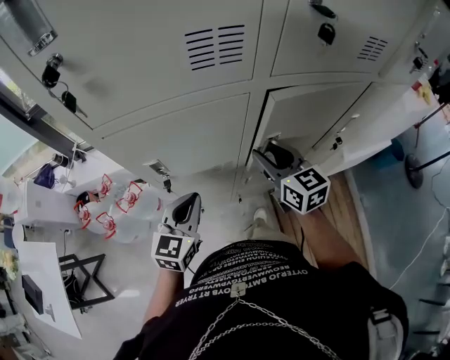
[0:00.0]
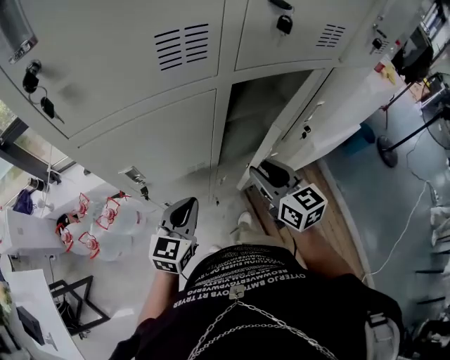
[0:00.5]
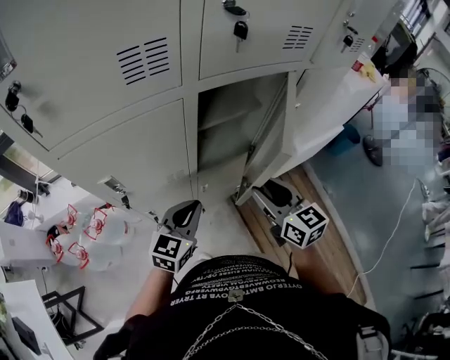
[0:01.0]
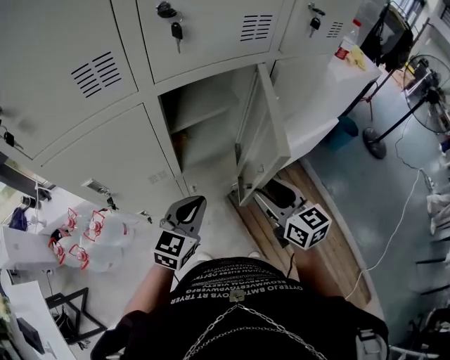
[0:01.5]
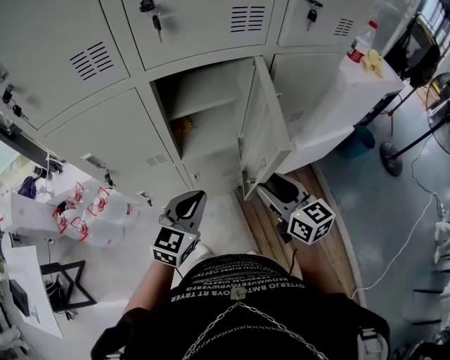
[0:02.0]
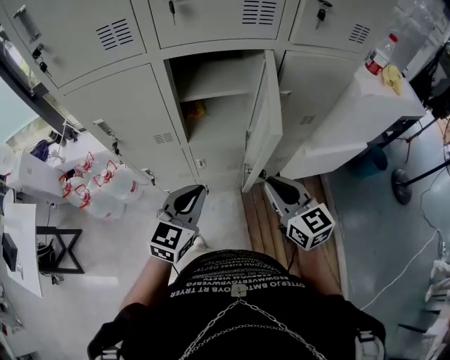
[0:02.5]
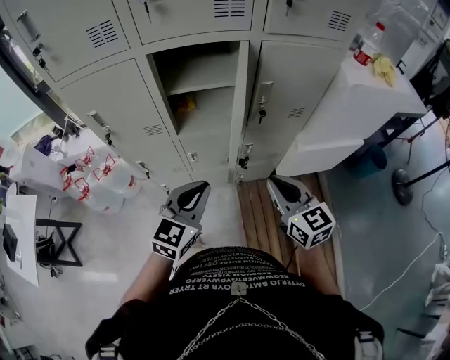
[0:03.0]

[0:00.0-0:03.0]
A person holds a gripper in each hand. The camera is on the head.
0:00.0 to 0:01.5: The left gripper heads to the right, covering about 20 cm, and turns by about 20 degrees. Meanwhile the right gripper shifts roughly 25 cm to the right and backward.
0:01.5 to 0:03.0: Both grippers move to the right and backward, roughly 15 cm. The right gripper swivels some 20 degrees, and closes up.

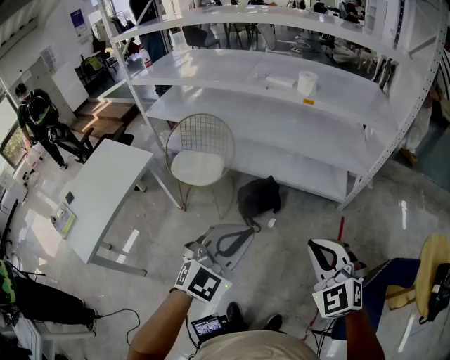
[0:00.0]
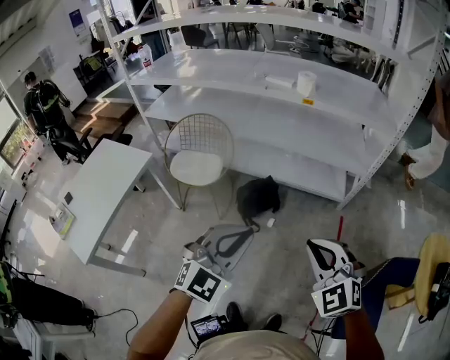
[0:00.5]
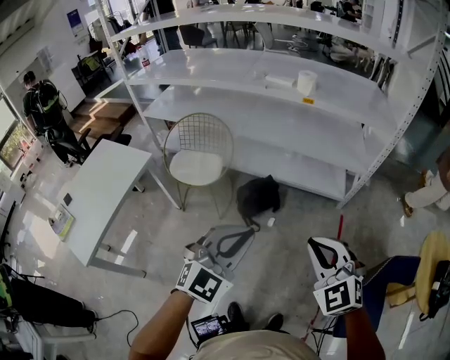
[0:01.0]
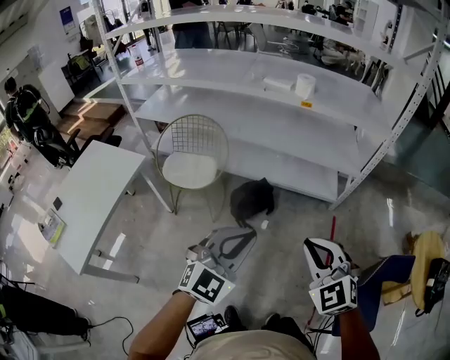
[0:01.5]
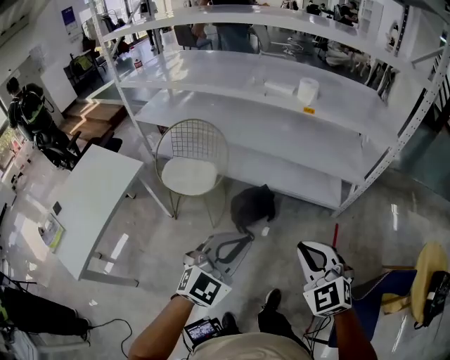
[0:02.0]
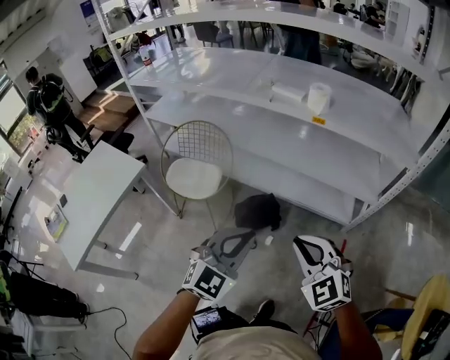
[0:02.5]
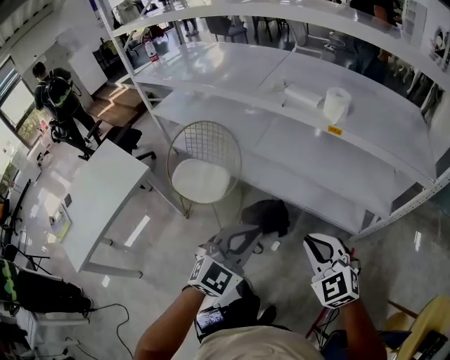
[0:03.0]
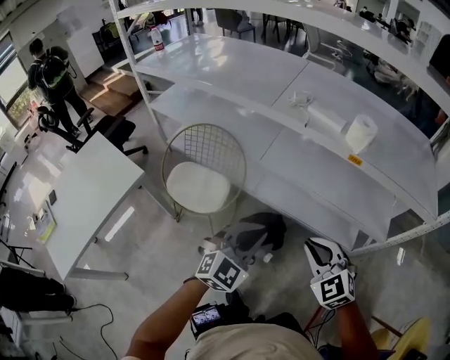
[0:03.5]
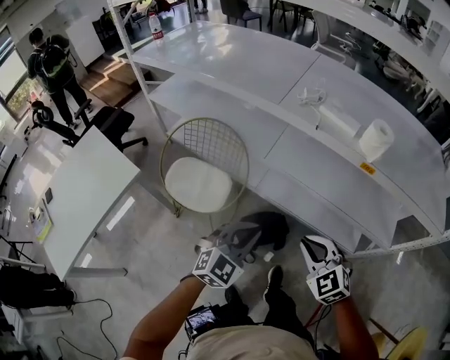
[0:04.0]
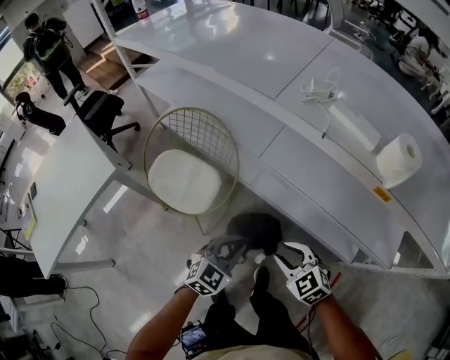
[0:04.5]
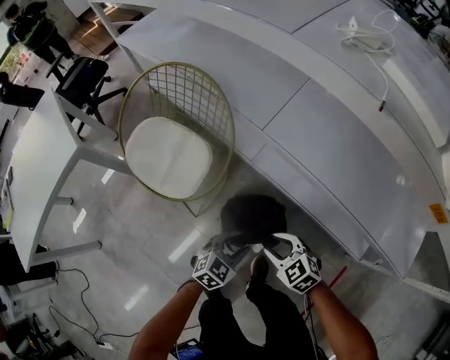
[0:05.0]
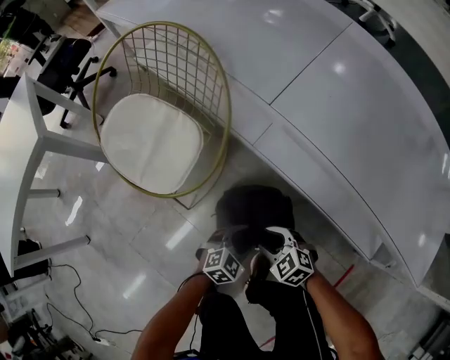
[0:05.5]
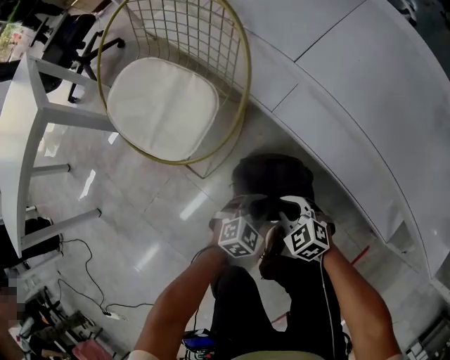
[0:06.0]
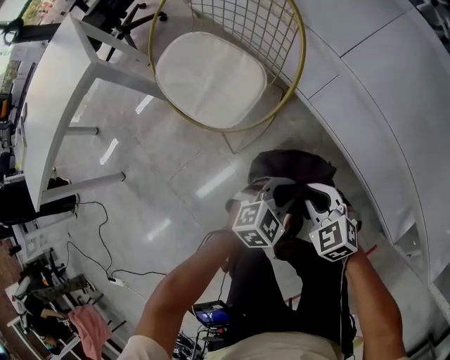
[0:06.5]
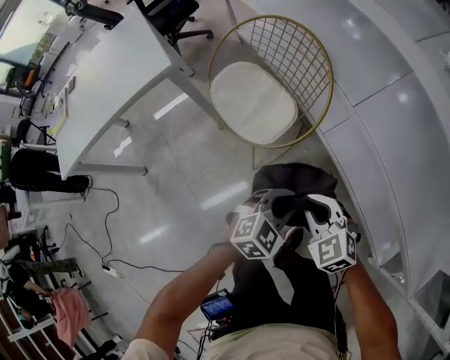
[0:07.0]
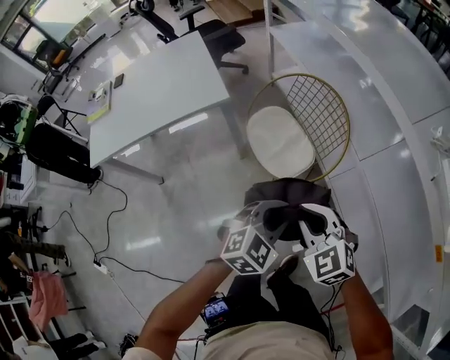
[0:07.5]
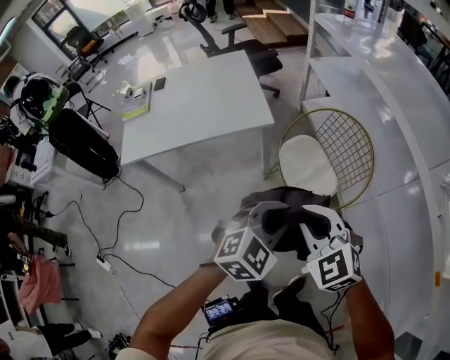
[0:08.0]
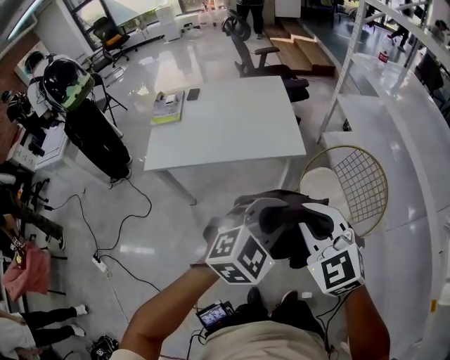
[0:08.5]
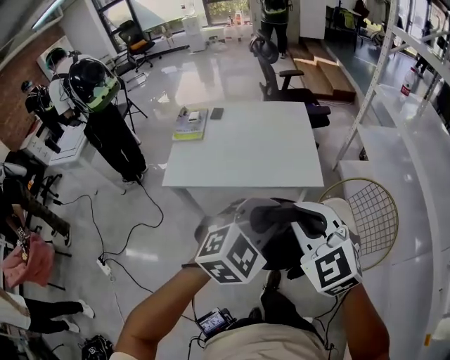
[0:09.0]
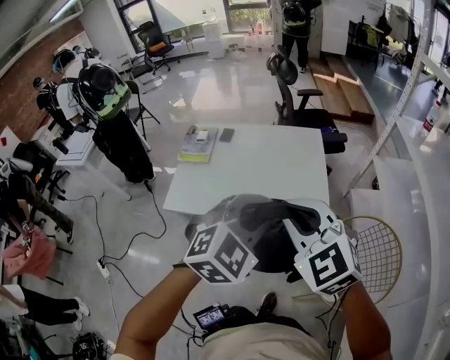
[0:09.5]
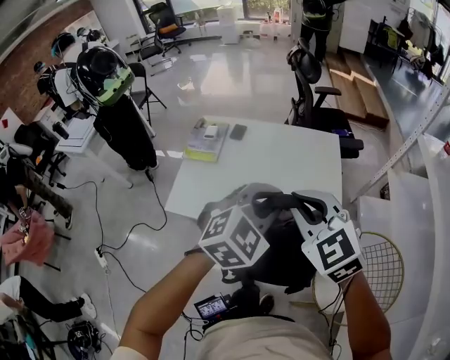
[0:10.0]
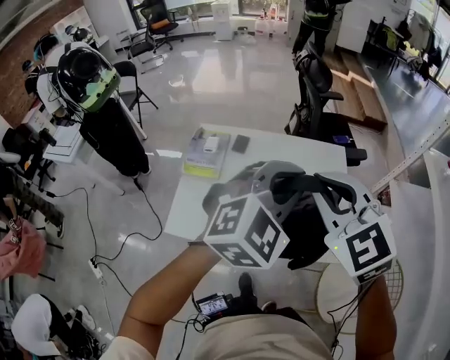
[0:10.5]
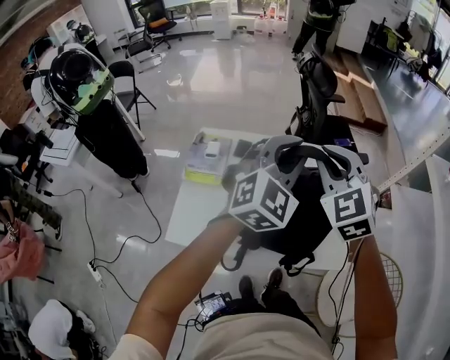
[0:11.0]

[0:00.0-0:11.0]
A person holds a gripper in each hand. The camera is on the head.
0:00.0 to 0:02.0: The two grippers go approximately 5 cm forward.
0:02.0 to 0:03.5: The two grippers go some 30 cm forward.
0:03.5 to 0:05.5: The grippers both shift downward by approximately 60 cm. The right gripper rotates approximately 40 degrees, and opens, while the left gripper rotates approximately 40 degrees, and opens up.
0:05.5 to 0:07.5: Both grippers move upward and to the left, roughly 50 cm. The right gripper changes its angle by some 30 degrees, and closes; the left gripper turns by roughly 30 degrees, and closes.
0:07.5 to 0:09.0: Both grippers move to the left and upward, about 40 cm. The right gripper rotates some 20 degrees, while the left gripper swivels approximately 20 degrees.
0:09.0 to 0:11.0: The two grippers travel together, forward, approximately 50 cm. The left gripper swivels roughly 20 degrees.

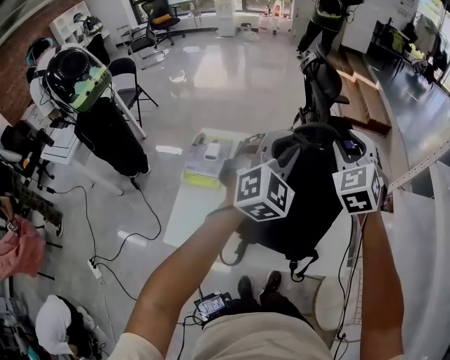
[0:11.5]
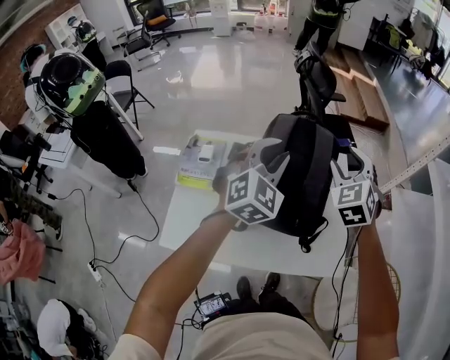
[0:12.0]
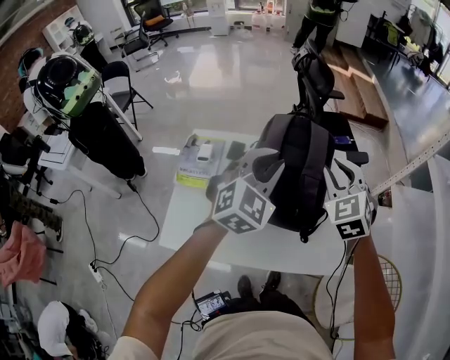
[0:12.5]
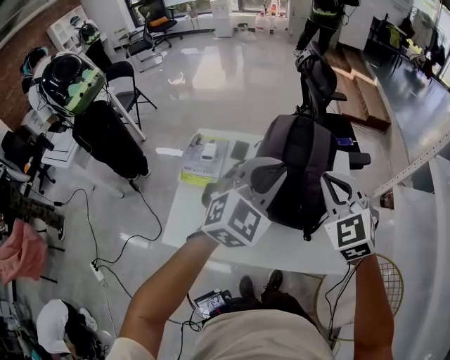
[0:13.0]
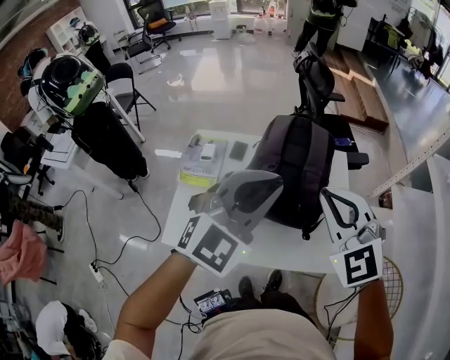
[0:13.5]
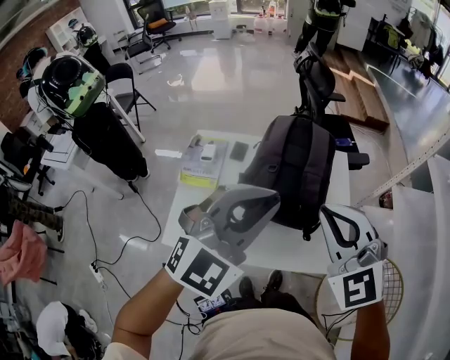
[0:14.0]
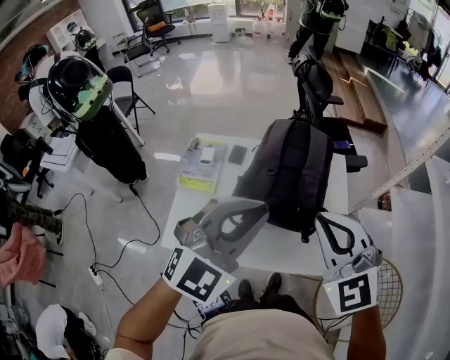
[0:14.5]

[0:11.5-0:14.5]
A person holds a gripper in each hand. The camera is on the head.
0:11.5 to 0:13.0: The right gripper is displaced backward by about 10 cm, and closes its fingers, while the left gripper heads backward, covering some 5 cm.
0:13.0 to 0:14.5: Both grippers travel together backward and upward, approximately 10 cm.

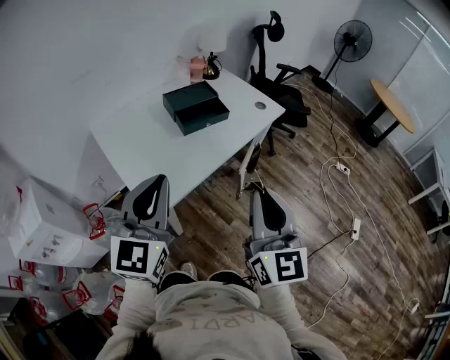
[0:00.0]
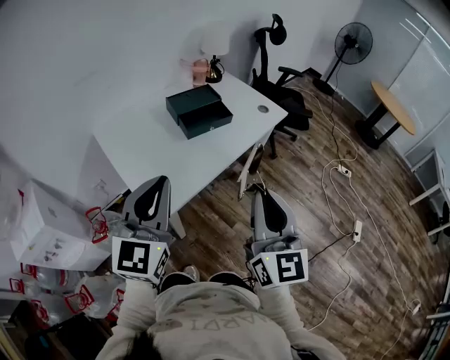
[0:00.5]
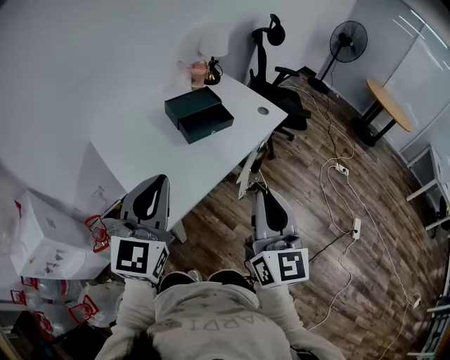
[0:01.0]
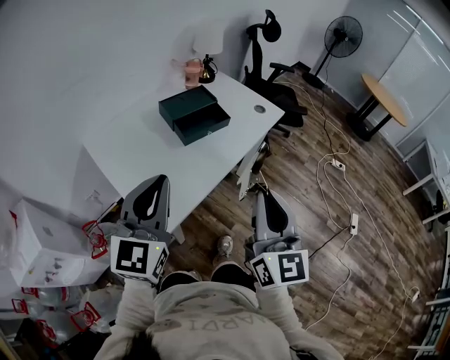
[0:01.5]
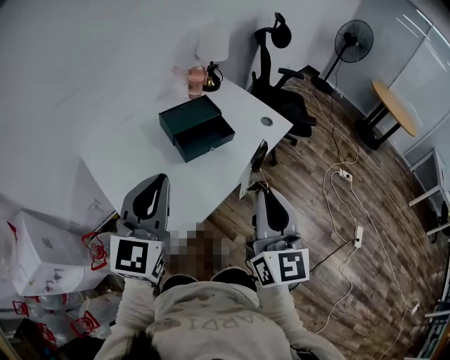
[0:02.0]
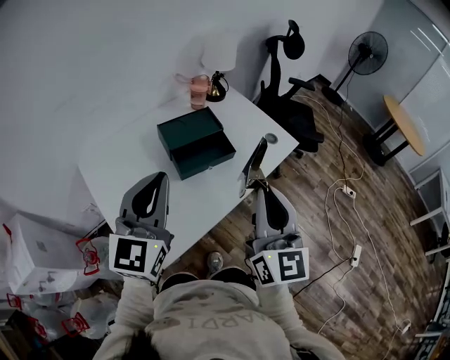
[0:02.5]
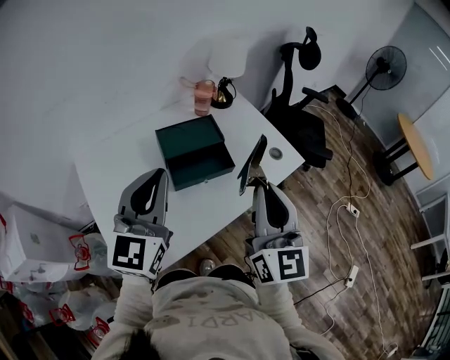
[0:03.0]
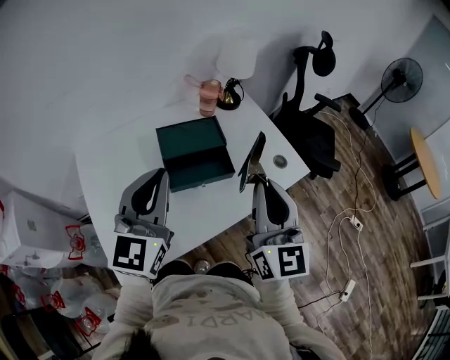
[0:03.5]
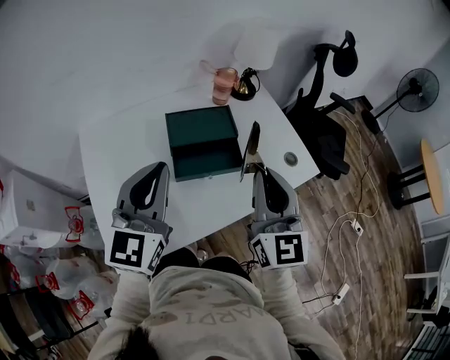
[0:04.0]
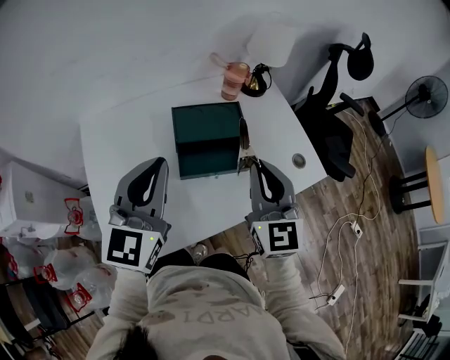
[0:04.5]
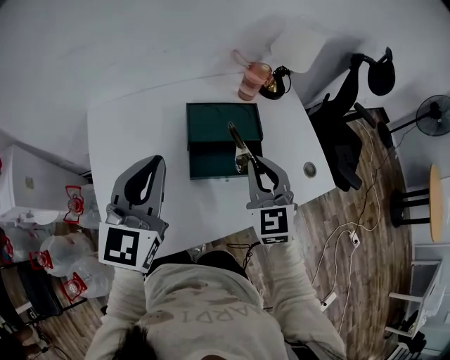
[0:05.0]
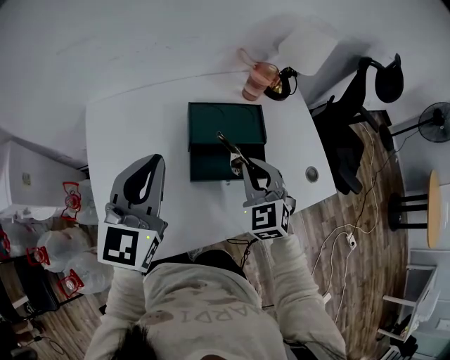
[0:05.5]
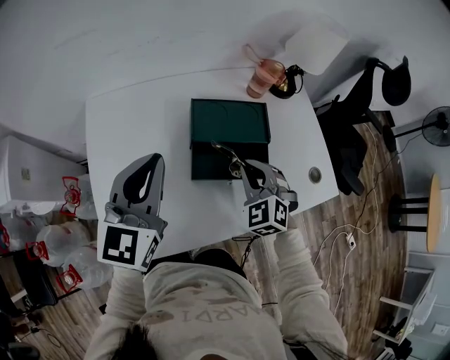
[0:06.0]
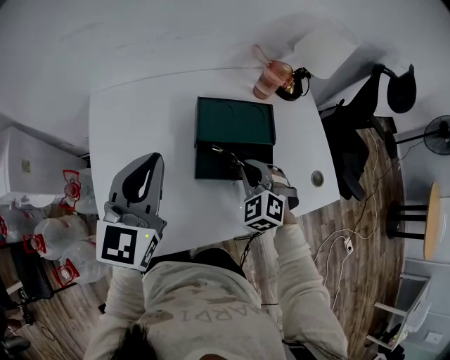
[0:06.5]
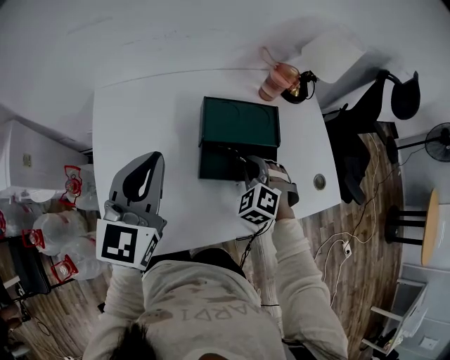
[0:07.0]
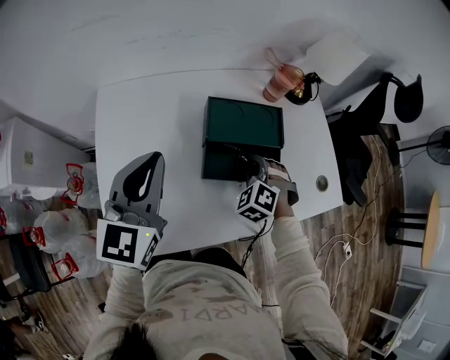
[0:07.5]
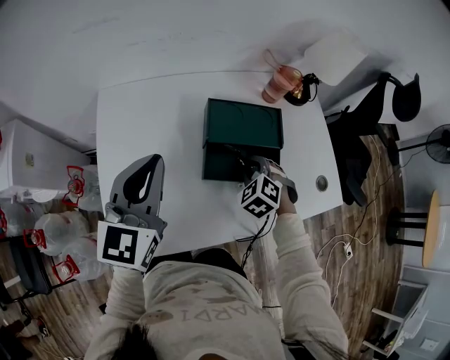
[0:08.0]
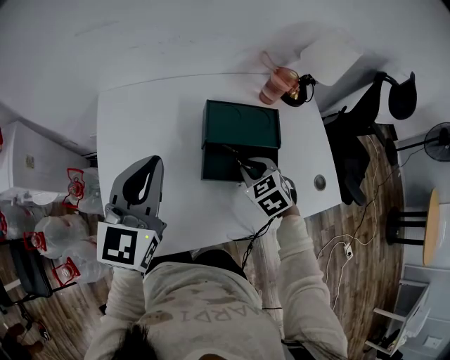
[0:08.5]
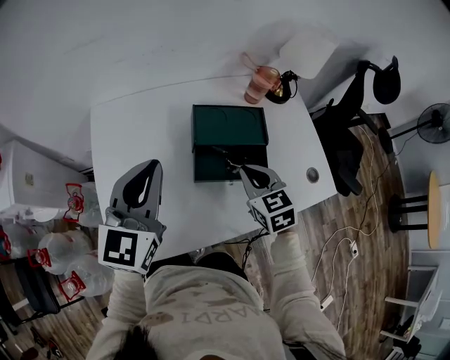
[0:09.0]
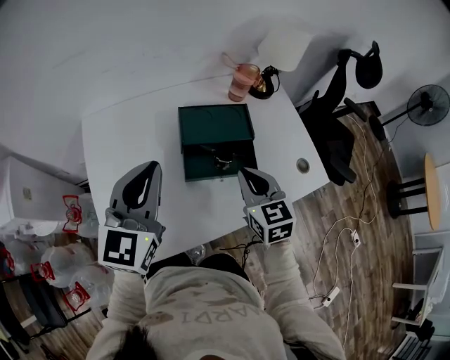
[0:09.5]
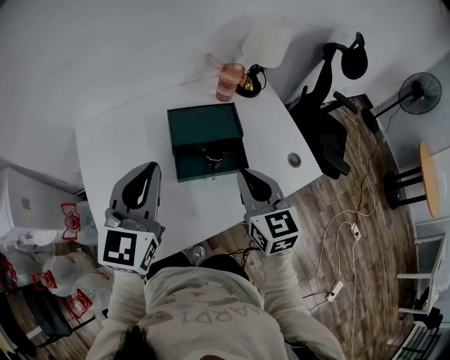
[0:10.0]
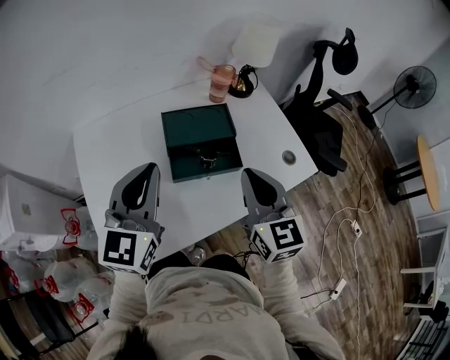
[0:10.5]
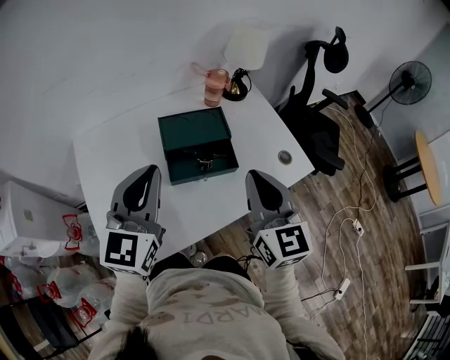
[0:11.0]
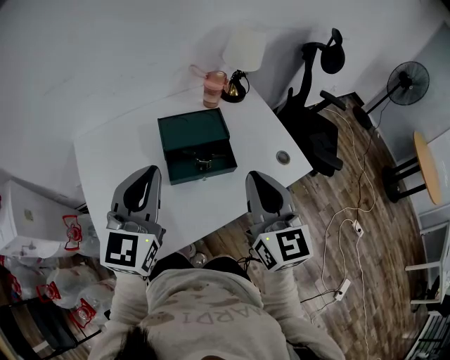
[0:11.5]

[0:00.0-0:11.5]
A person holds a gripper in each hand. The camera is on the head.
0:00.0 to 0:02.0: The two grippers go some 15 cm forward.
0:02.0 to 0:04.0: Both grippers travel together forward, some 20 cm. The right gripper turns by approximately 20 degrees.
0:04.0 to 0:06.0: The right gripper moves downward and forward, approximately 25 cm, and angles its fingers downward, by some 40 degrees, while the left gripper shifts approximately 10 cm forward, to the left and downward.
0:06.0 to 0:07.5: The right gripper travels downward by approximately 5 cm, and changes its angle by approximately 20 degrees.
0:07.5 to 0:09.5: The left gripper ends up some 5 cm from where it was. The right gripper goes roughly 15 cm upward and backward, and twists approximately 50 degrees clockwise, seen from behind.
0:09.5 to 0:11.5: The left gripper heads to the right, covering approximately 5 cm. Meanwhile the right gripper travels upward and backward by approximately 20 cm, and rotates approximately 30 degrees.
